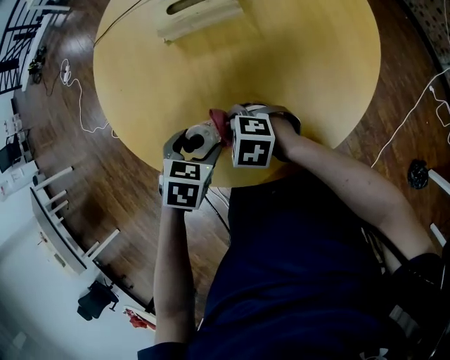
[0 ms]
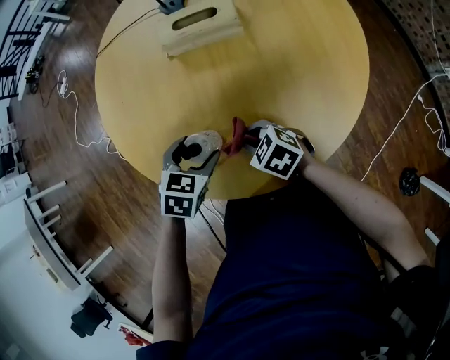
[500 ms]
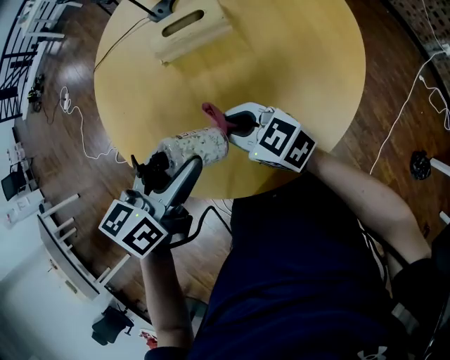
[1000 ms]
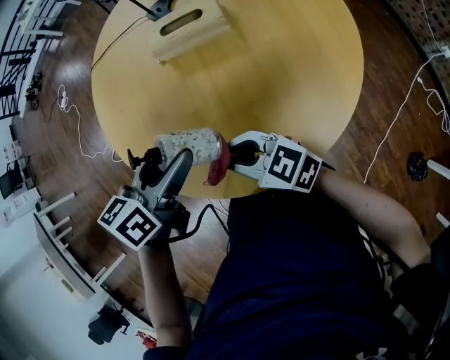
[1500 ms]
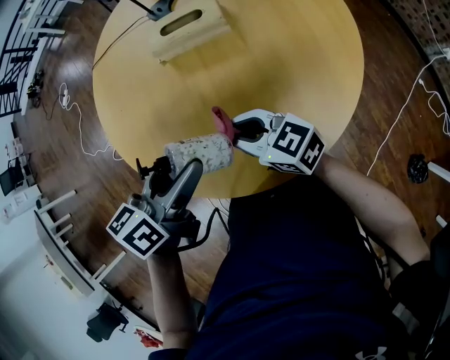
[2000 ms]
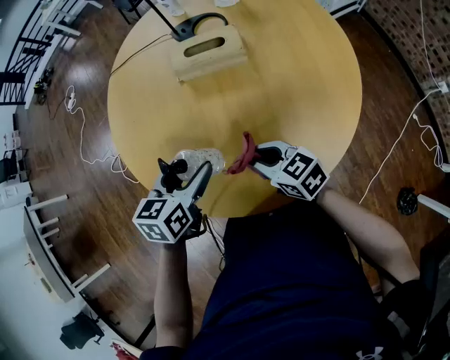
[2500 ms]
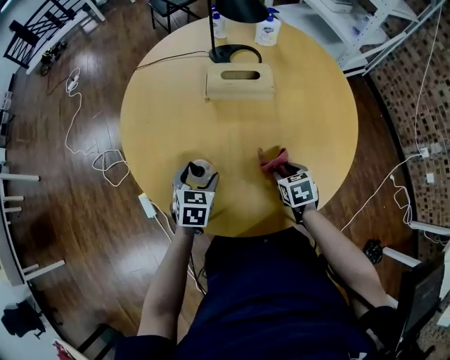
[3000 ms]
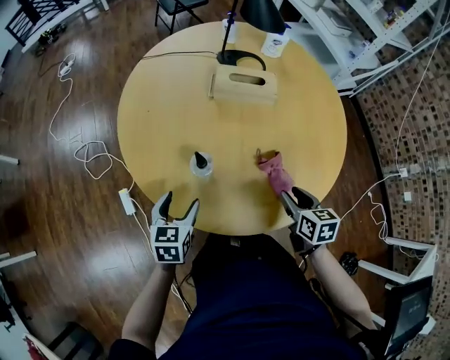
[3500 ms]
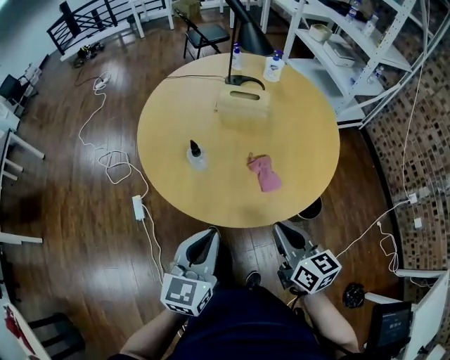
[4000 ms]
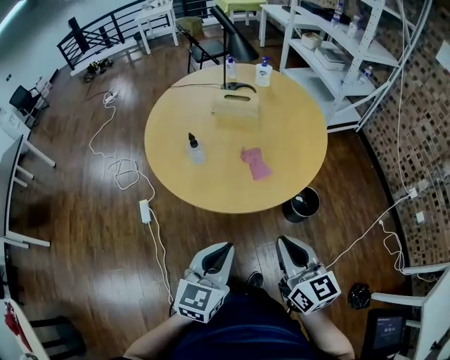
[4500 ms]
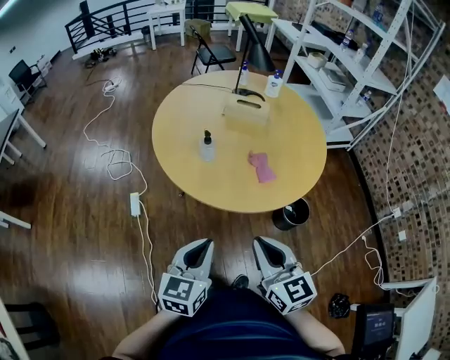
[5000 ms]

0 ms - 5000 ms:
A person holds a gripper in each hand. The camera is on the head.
0 ms - 2500 ms: The right gripper shifts about 10 cm to the right and upward, and changes its angle by some 40 degrees, while the left gripper heads upward, covering approximately 10 cm, and tips its fingers upward by roughly 30 degrees.
2500 ms - 5000 ms: The right gripper travels backward and upward by some 35 cm, turns by about 30 degrees, and opens, then closes again. The left gripper moves backward, about 35 cm, rotates approximately 20 degrees, and closes up.

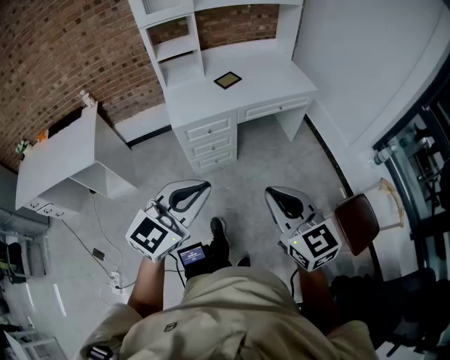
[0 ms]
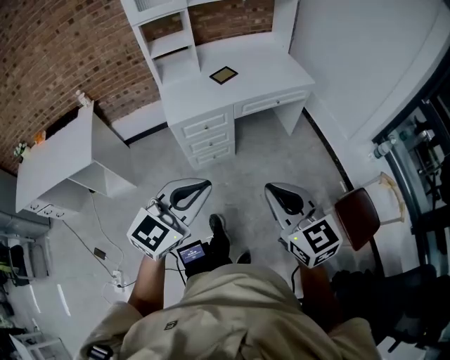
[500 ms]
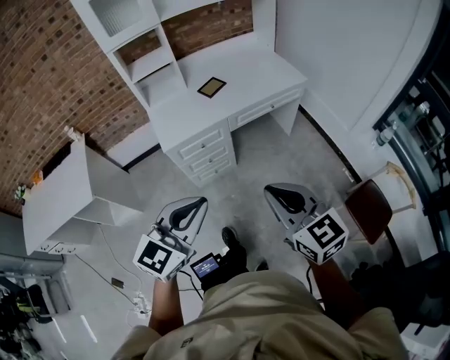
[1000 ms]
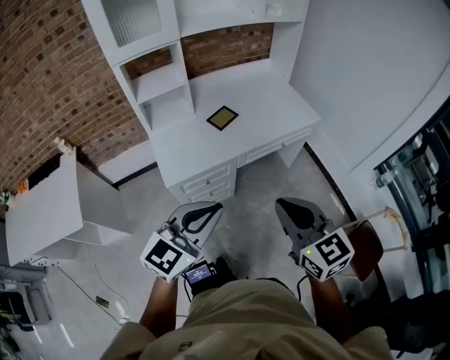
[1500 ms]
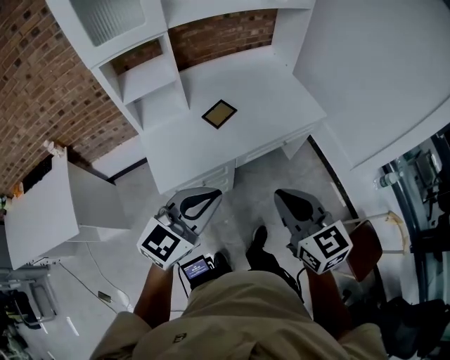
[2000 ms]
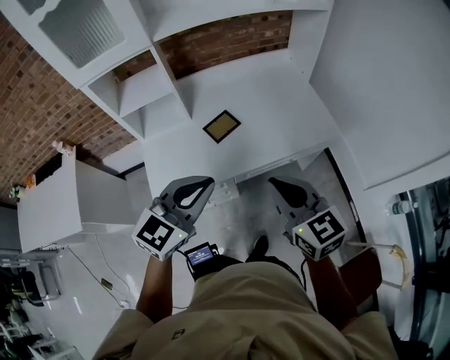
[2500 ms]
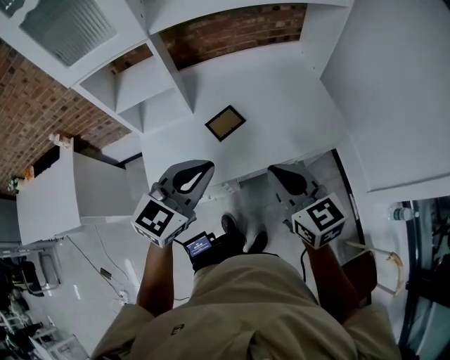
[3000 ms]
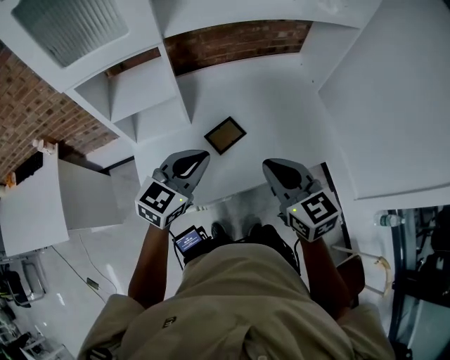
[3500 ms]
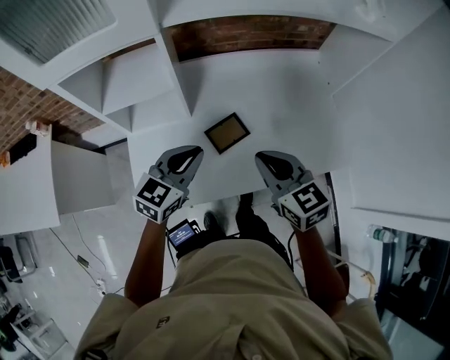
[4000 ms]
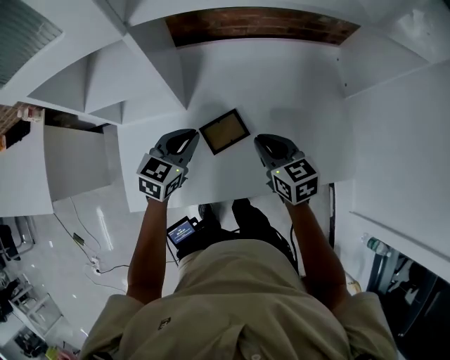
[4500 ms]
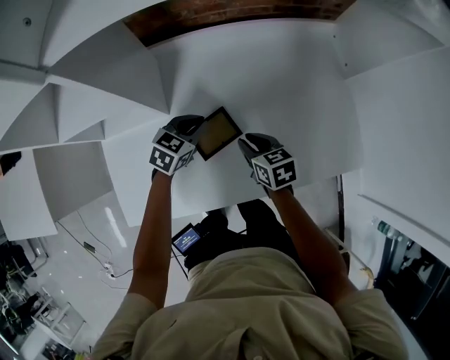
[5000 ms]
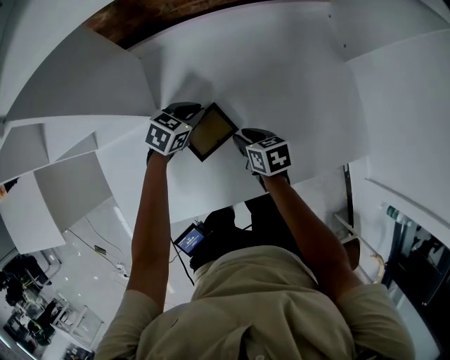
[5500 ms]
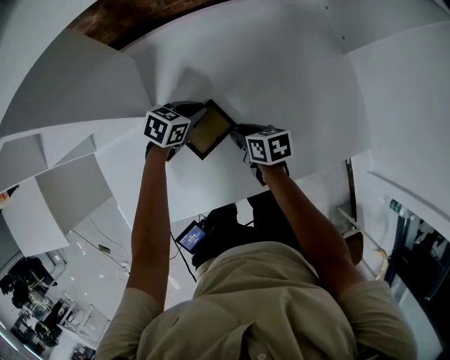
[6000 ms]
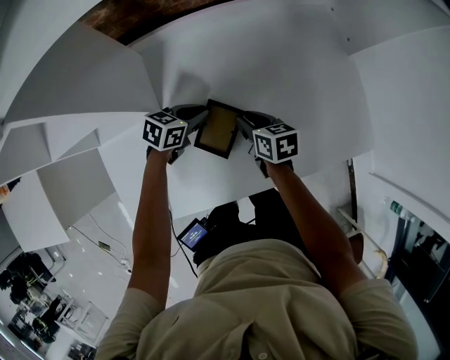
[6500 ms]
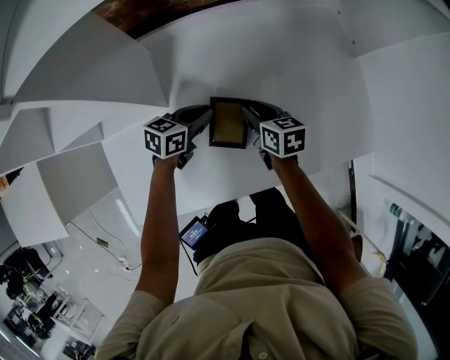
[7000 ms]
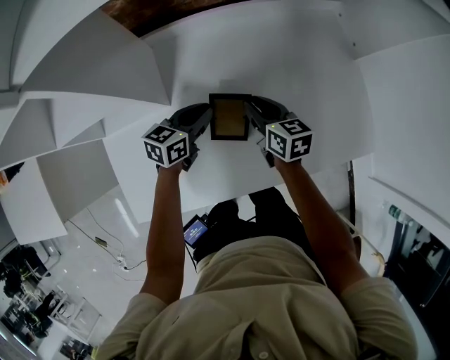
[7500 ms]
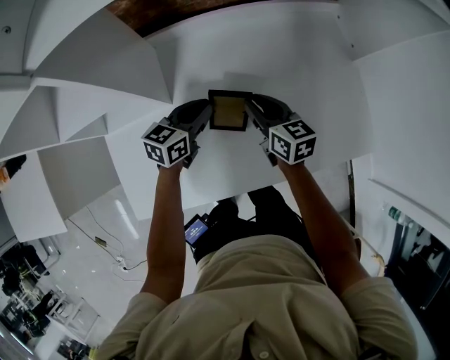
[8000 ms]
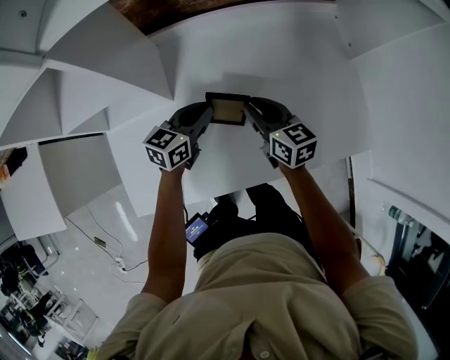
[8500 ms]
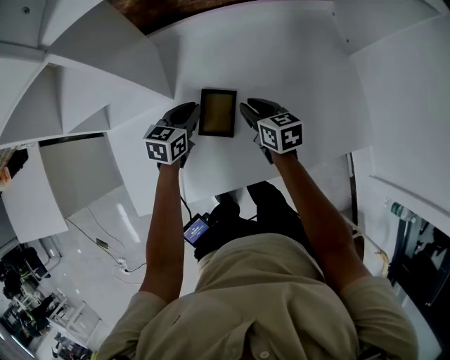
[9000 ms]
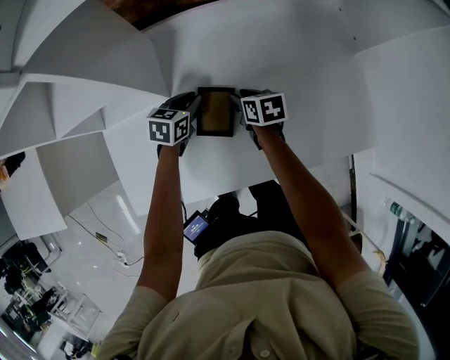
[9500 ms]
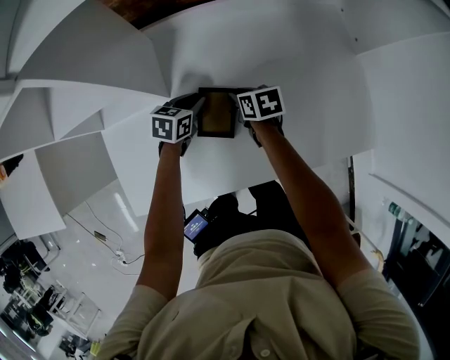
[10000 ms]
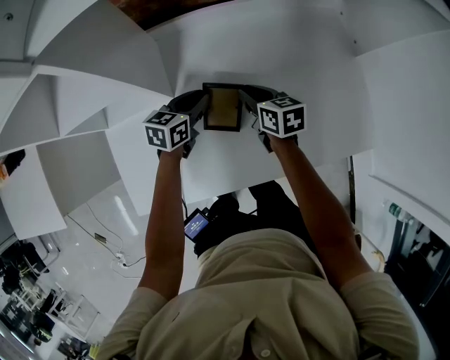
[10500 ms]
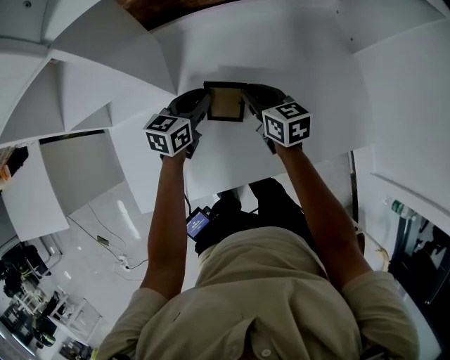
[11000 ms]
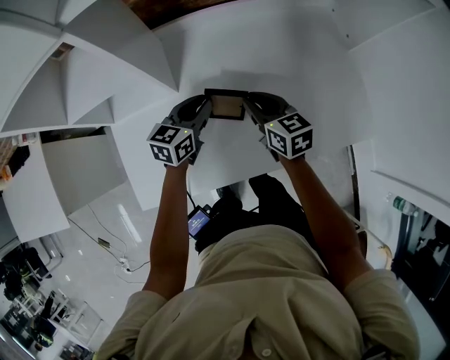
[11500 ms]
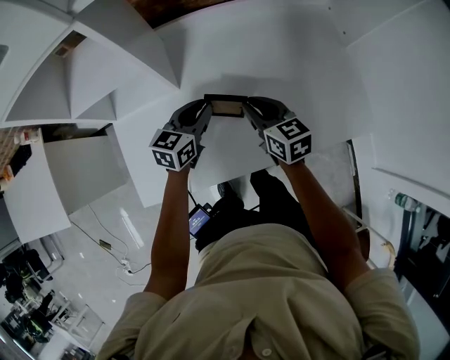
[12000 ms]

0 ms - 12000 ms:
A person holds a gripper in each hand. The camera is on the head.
0 ms - 2000 ms: Both grippers move forward, about 40 cm.
2000 ms - 4000 ms: Both grippers move forward, approximately 40 cm. The right gripper rotates approximately 20 degrees. The left gripper turns by about 20 degrees.
4000 ms - 6000 ms: The two grippers go roughly 35 cm downward and forward. The right gripper twists roughly 40 degrees clockwise, seen from behind, and opens, while the left gripper turns by about 40 degrees.
6000 ms - 8000 ms: The right gripper is displaced upward and forward by approximately 15 cm, and turns by about 30 degrees. Meanwhile the left gripper heads upward, covering about 10 cm, and swivels approximately 30 degrees.
8000 ms - 10000 ms: The grippers both shift downward by some 10 cm. The right gripper rotates about 30 degrees. The left gripper swivels roughly 20 degrees.
10000 ms - 12000 ms: The two grippers go some 15 cm upward and backward. The left gripper swivels approximately 20 degrees. The right gripper rotates some 30 degrees.

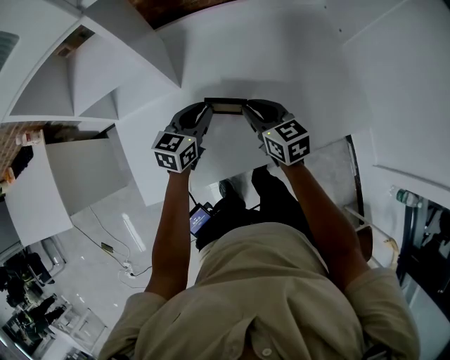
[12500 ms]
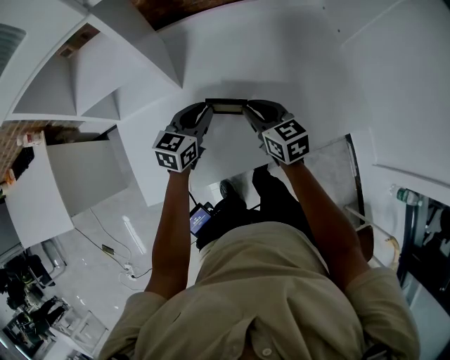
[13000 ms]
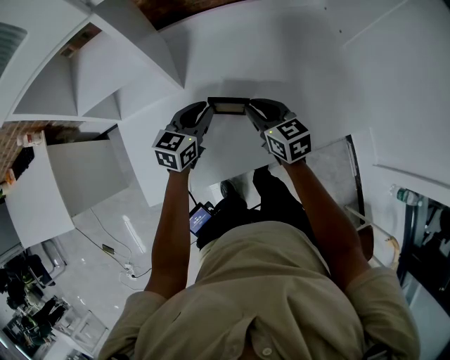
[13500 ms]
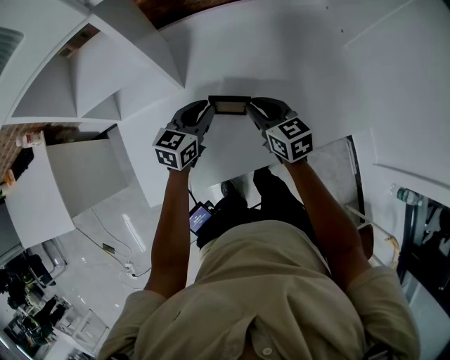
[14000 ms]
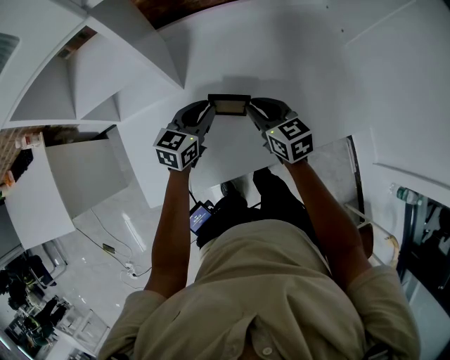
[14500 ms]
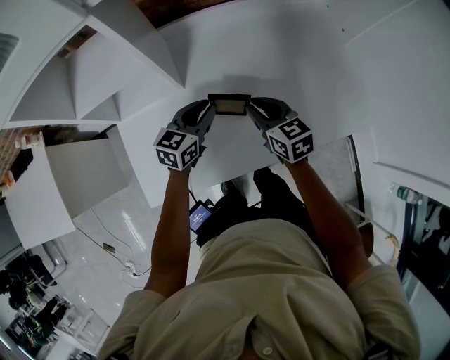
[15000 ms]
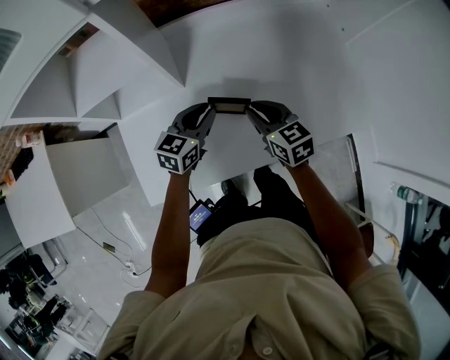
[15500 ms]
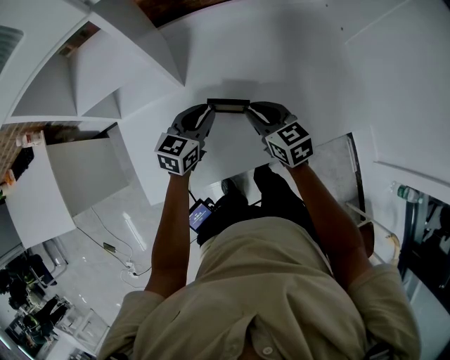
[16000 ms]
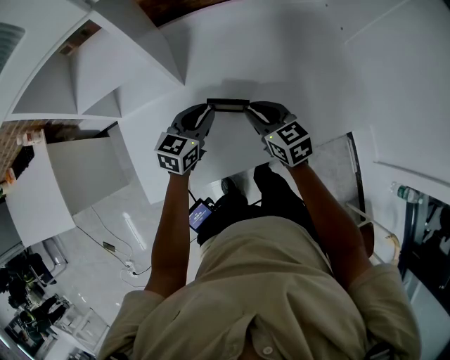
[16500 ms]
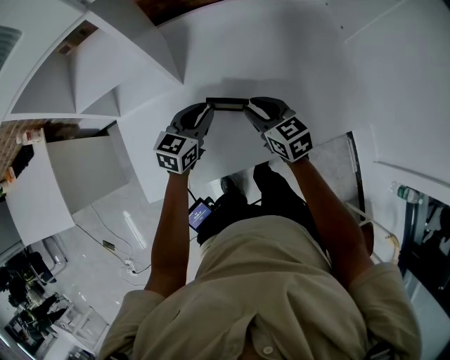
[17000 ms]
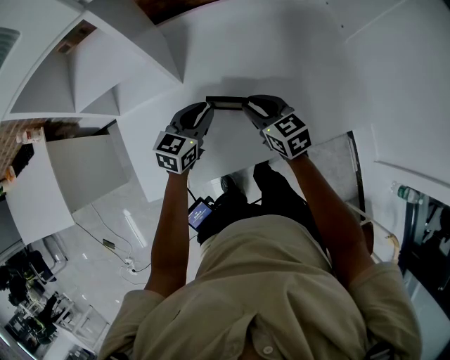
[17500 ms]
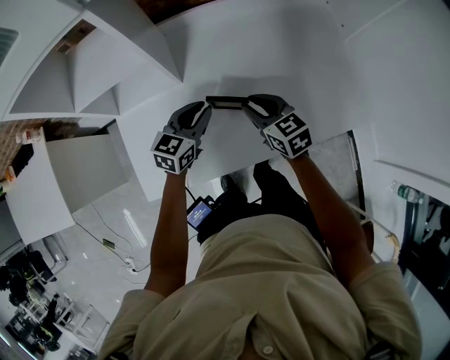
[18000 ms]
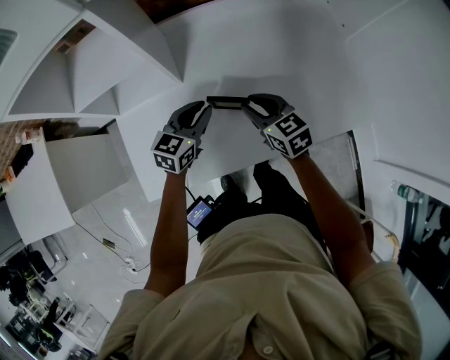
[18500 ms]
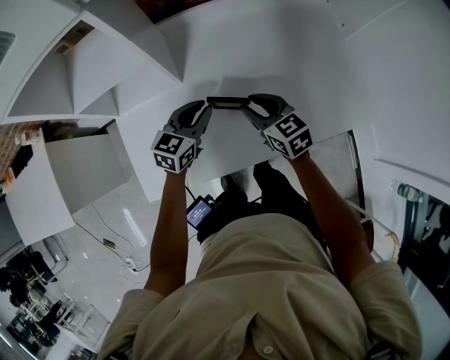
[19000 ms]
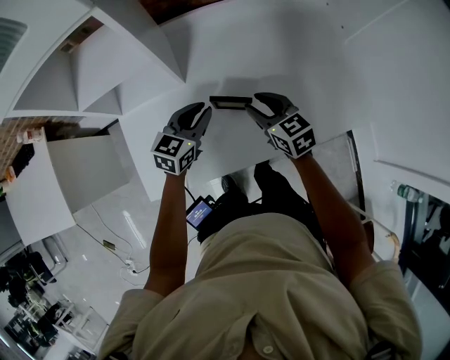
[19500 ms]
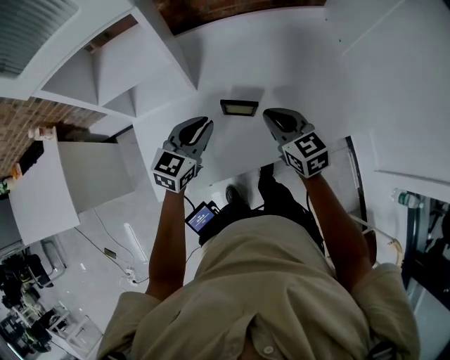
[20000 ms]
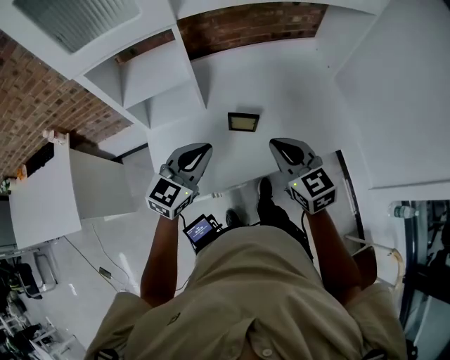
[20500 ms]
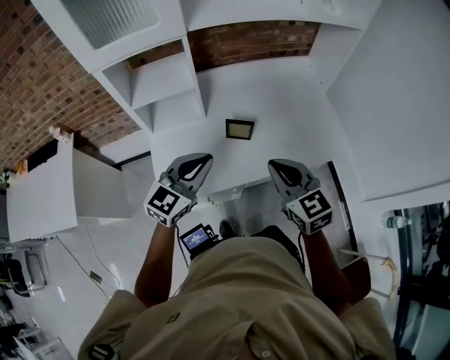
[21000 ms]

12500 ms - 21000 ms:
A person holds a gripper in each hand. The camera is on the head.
12500 ms - 14500 ms: The two grippers keep their place.
14500 ms - 19000 ms: The grippers stay close to where they were, moving slightly.
19000 ms - 21000 ms: The right gripper moves backward and upward, some 35 cm, and closes. The left gripper goes roughly 30 cm upward and backward, and turns by about 20 degrees.

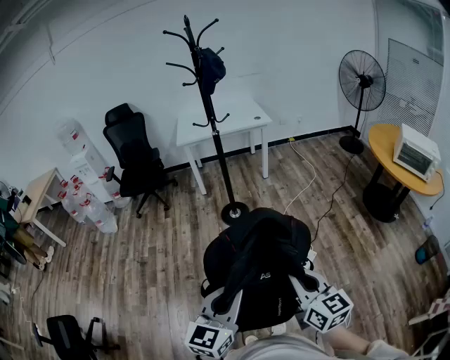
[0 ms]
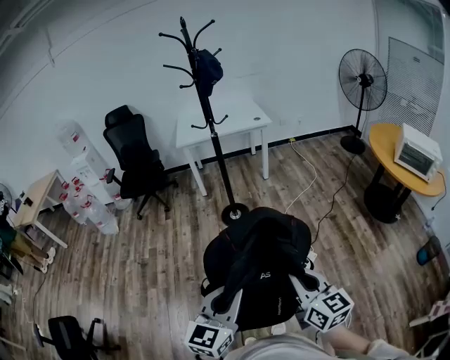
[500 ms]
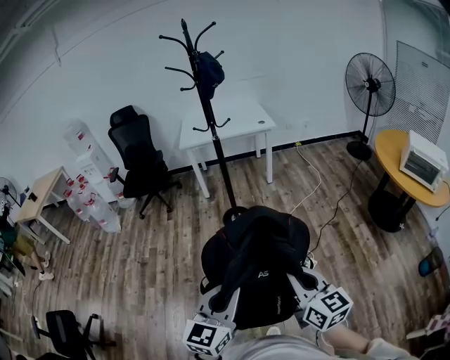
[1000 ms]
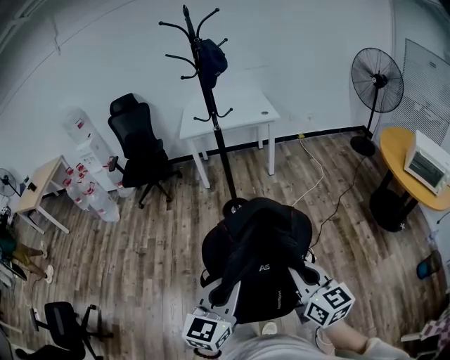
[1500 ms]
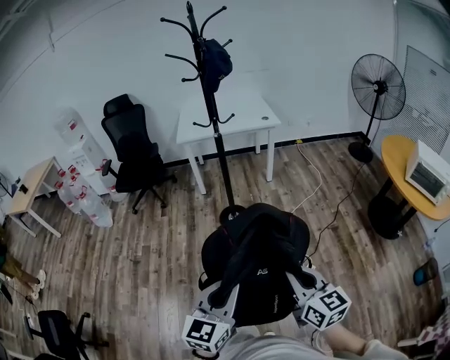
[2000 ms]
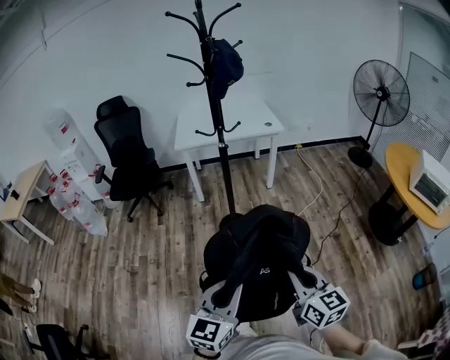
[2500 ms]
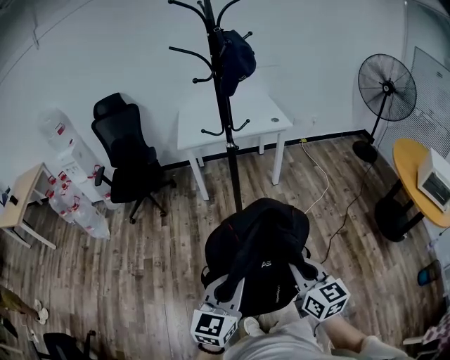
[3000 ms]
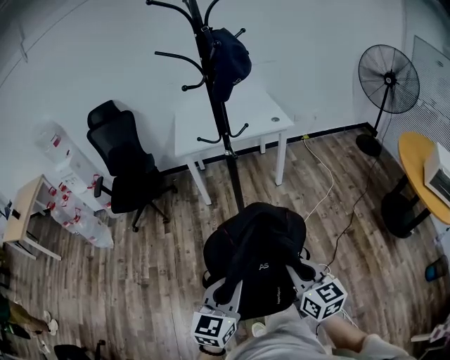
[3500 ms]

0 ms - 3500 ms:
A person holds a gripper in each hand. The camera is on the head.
0 ms - 2000 ms: Both grippers travel together forward, about 15 cm.
2000 ms - 3500 ms: The two grippers go about 25 cm forward.
